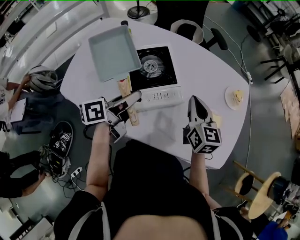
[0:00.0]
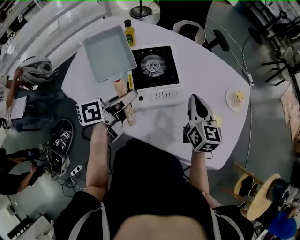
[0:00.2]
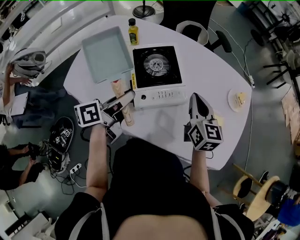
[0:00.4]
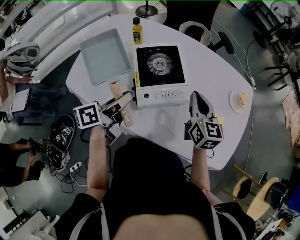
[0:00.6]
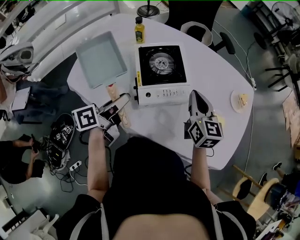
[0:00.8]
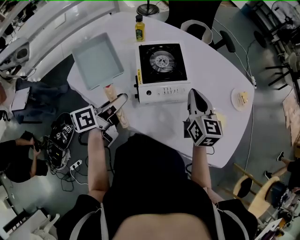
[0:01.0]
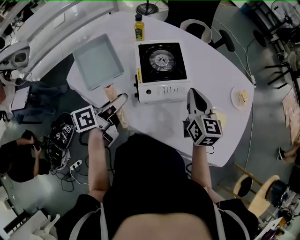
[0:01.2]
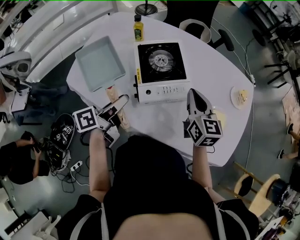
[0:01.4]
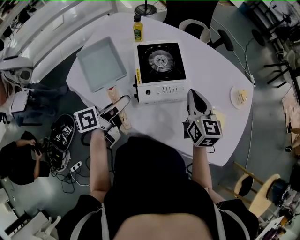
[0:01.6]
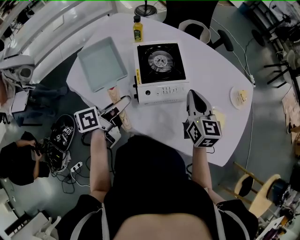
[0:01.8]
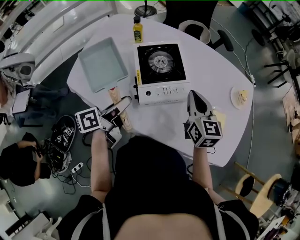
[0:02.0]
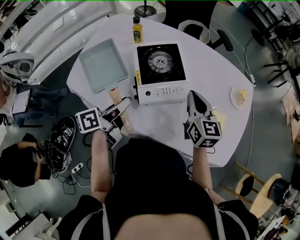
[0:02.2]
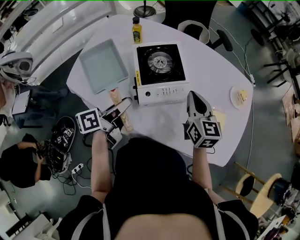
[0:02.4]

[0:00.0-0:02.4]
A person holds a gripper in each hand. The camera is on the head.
0:00.0 to 0:01.2: The right gripper ends up about 5 cm from where it was, while the left gripper travels to the left and backward by about 10 cm.
0:01.2 to 0:02.4: The grippers move only a little.

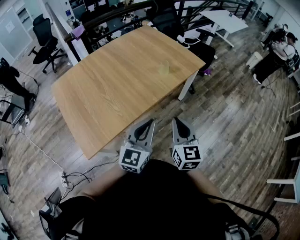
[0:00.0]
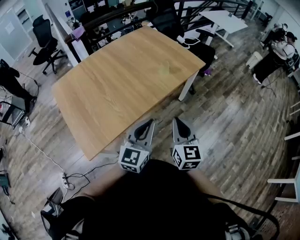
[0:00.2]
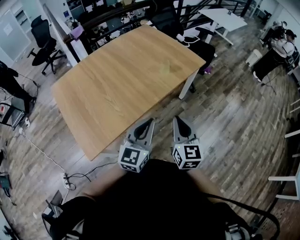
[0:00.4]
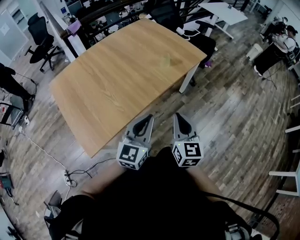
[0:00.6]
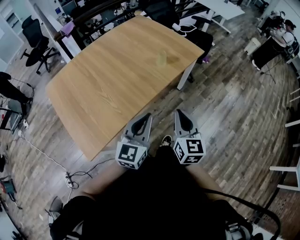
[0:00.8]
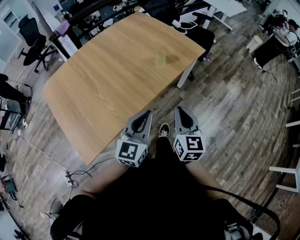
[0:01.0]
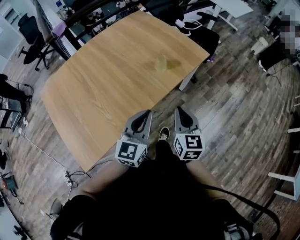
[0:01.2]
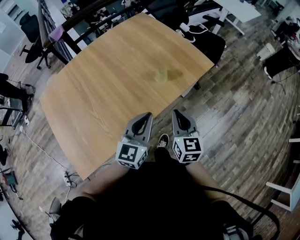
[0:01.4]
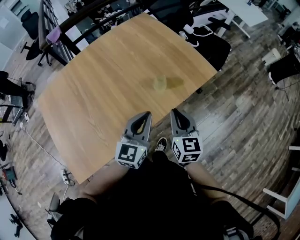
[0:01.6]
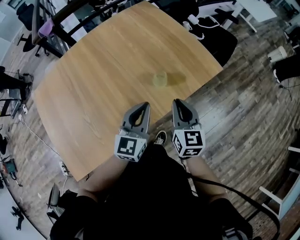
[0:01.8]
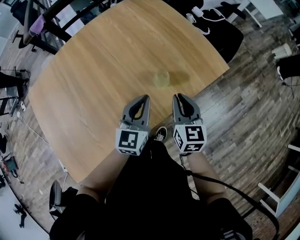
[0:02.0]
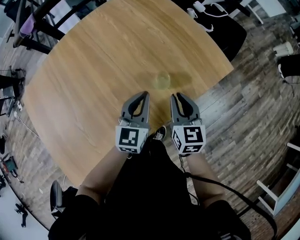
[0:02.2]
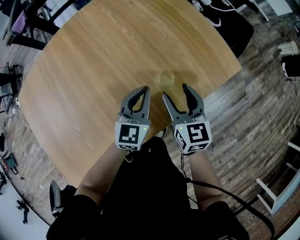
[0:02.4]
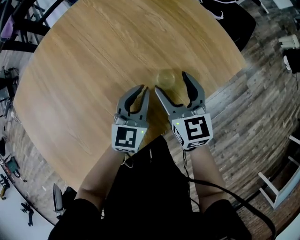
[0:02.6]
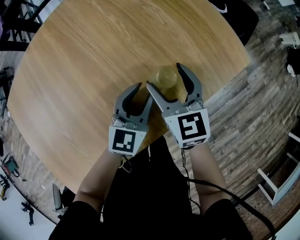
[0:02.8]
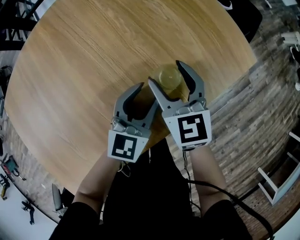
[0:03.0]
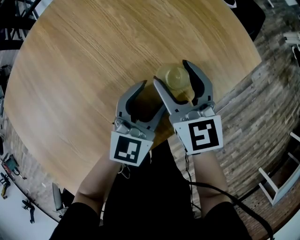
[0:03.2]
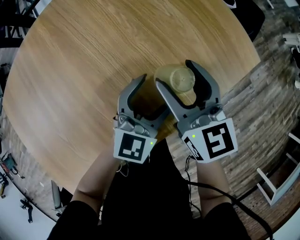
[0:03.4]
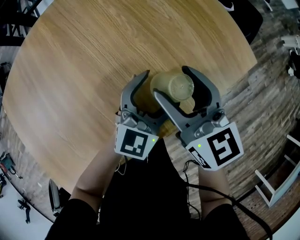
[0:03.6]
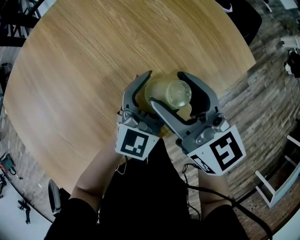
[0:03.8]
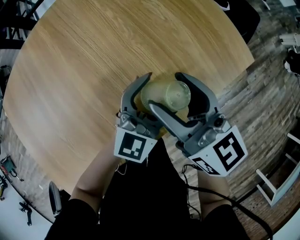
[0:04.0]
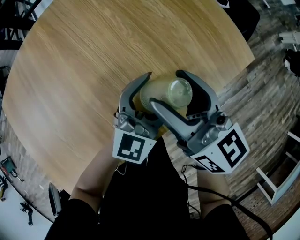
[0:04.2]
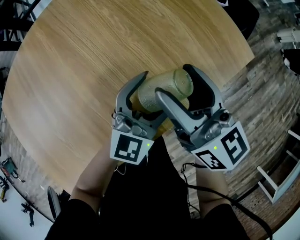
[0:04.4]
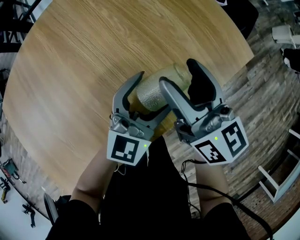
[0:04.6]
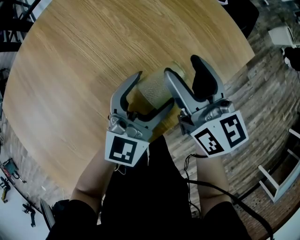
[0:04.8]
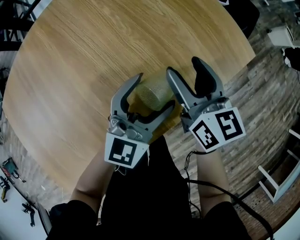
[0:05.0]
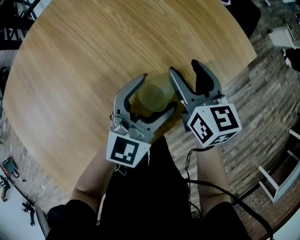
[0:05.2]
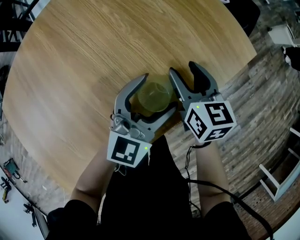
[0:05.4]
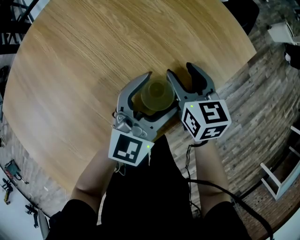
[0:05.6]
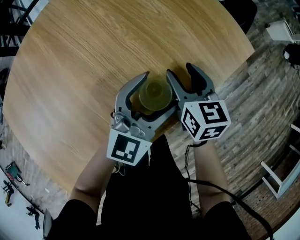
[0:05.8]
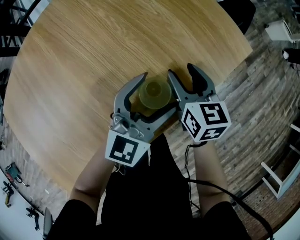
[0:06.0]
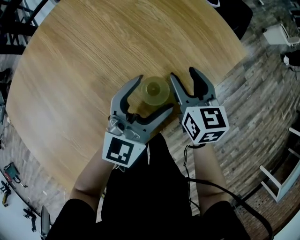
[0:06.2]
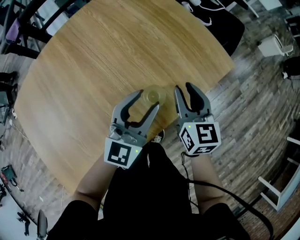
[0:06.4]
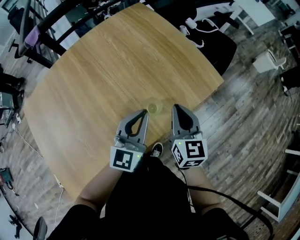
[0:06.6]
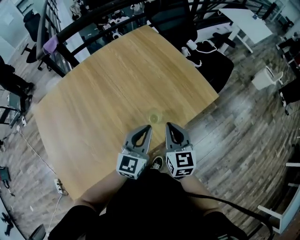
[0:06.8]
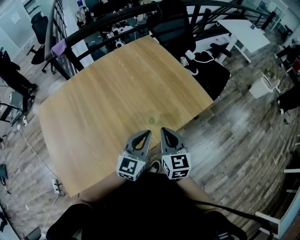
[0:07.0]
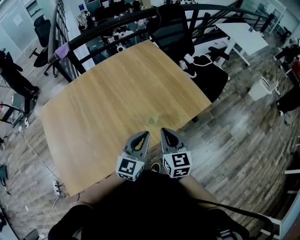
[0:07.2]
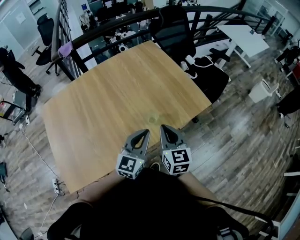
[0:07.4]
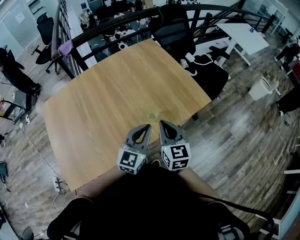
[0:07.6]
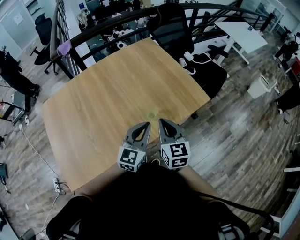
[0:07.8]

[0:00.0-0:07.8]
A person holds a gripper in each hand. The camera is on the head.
0:00.0 to 0:01.6: The grippers both shift forward by roughly 35 cm.
0:01.6 to 0:03.2: The right gripper is displaced forward and downward by about 30 cm, and opens up, while the left gripper heads downward and forward, covering approximately 30 cm, and opens its fingers.
0:03.2 to 0:04.6: The right gripper heads upward, covering approximately 5 cm, and rotates approximately 30 degrees.
0:04.6 to 0:06.2: The right gripper goes about 10 cm downward, and rotates some 30 degrees.
0:06.2 to 0:07.8: Both grippers travel together upward and backward, approximately 25 cm. The right gripper closes, while the left gripper closes its fingers.

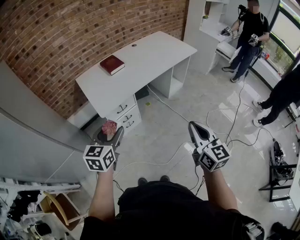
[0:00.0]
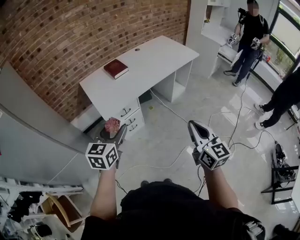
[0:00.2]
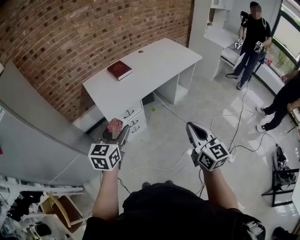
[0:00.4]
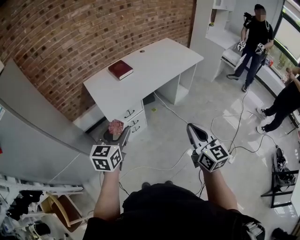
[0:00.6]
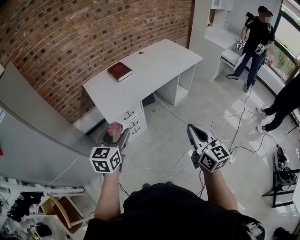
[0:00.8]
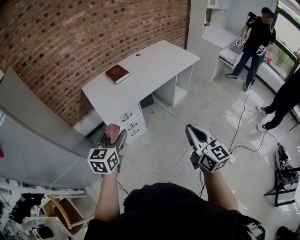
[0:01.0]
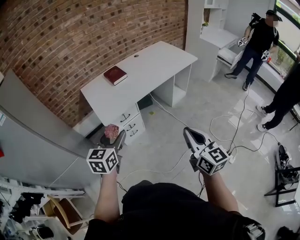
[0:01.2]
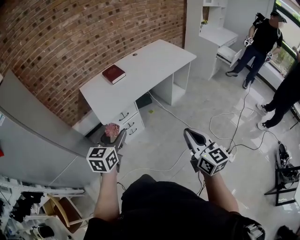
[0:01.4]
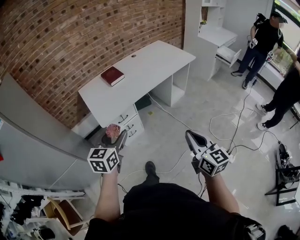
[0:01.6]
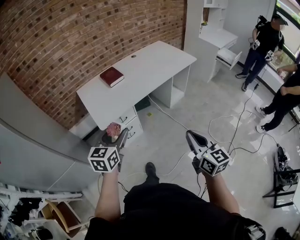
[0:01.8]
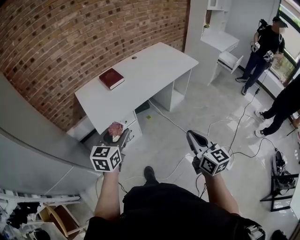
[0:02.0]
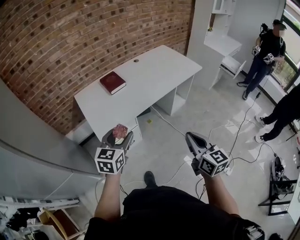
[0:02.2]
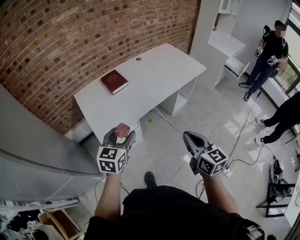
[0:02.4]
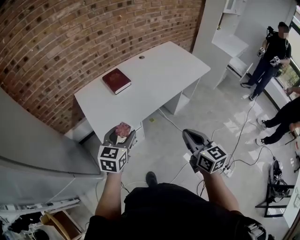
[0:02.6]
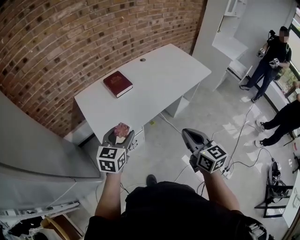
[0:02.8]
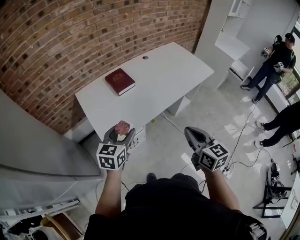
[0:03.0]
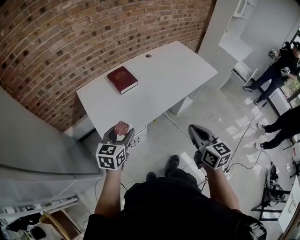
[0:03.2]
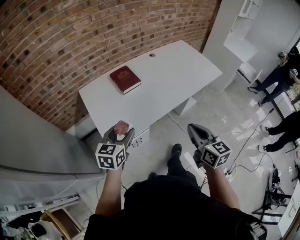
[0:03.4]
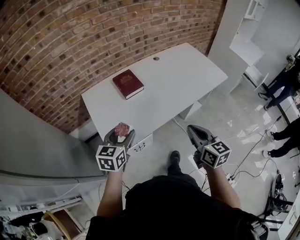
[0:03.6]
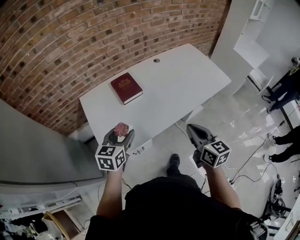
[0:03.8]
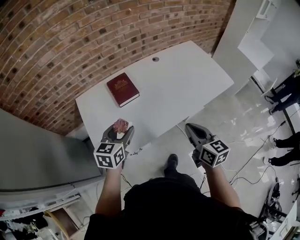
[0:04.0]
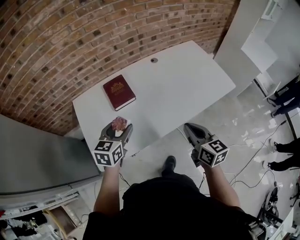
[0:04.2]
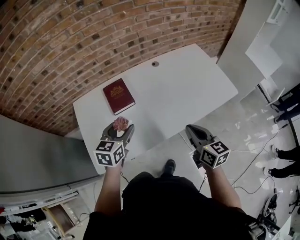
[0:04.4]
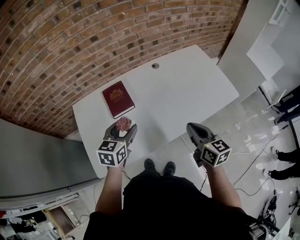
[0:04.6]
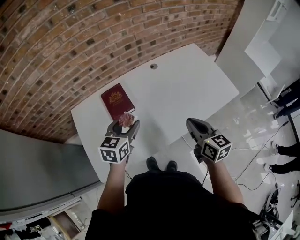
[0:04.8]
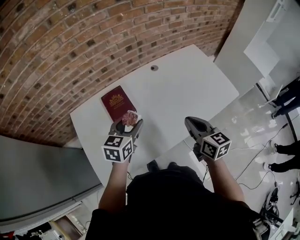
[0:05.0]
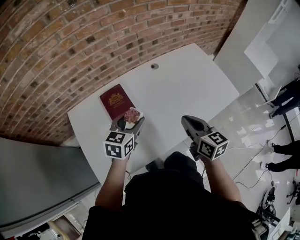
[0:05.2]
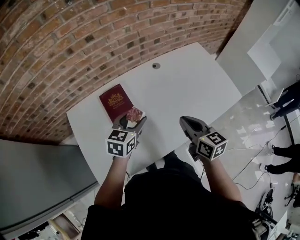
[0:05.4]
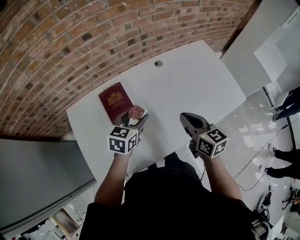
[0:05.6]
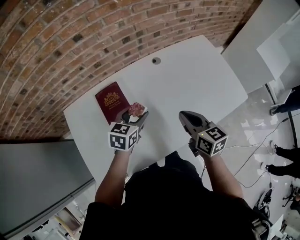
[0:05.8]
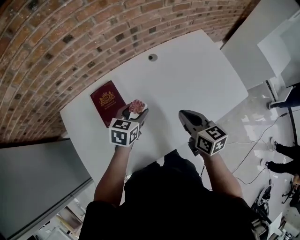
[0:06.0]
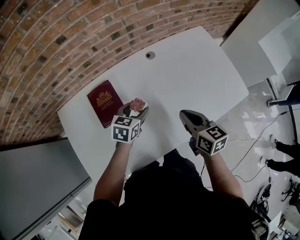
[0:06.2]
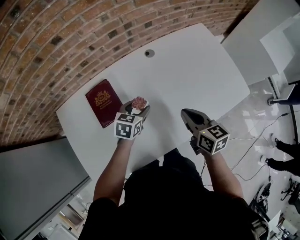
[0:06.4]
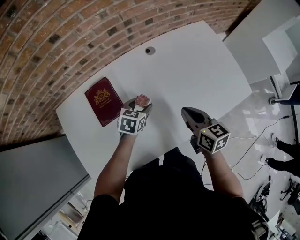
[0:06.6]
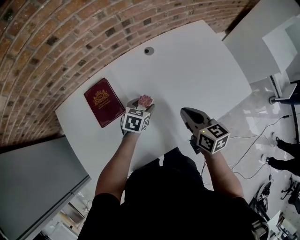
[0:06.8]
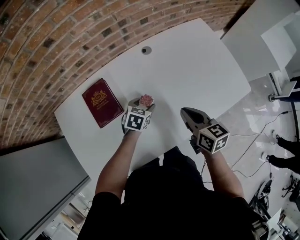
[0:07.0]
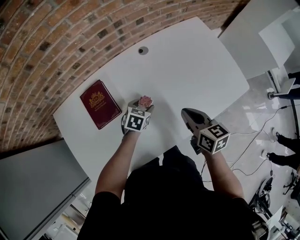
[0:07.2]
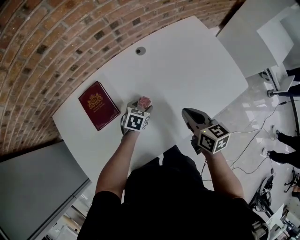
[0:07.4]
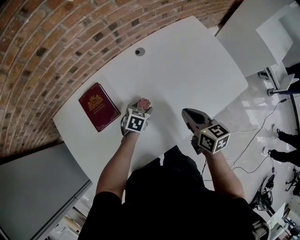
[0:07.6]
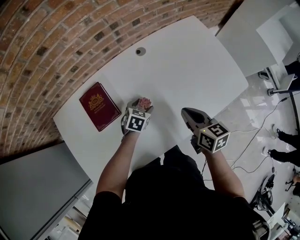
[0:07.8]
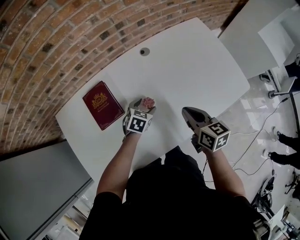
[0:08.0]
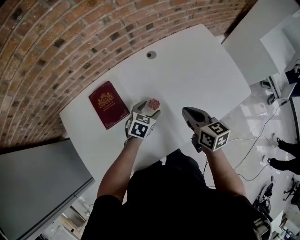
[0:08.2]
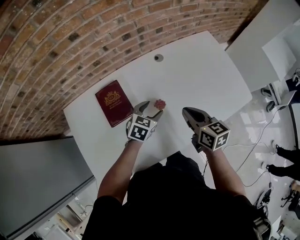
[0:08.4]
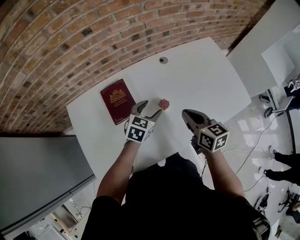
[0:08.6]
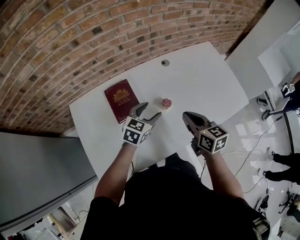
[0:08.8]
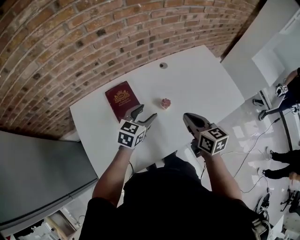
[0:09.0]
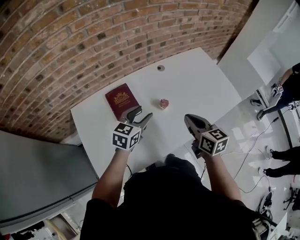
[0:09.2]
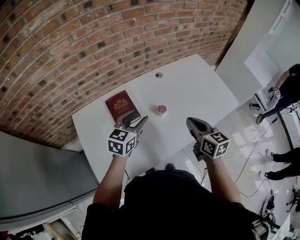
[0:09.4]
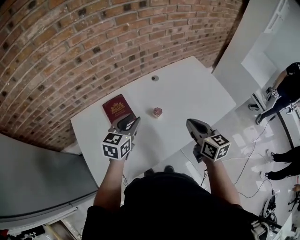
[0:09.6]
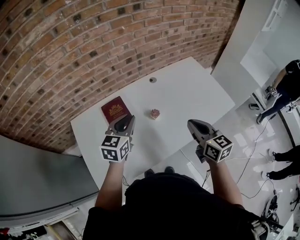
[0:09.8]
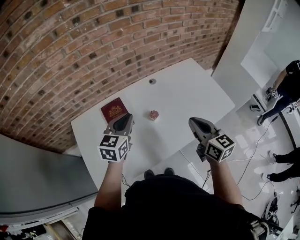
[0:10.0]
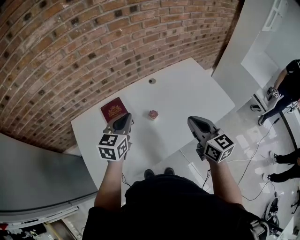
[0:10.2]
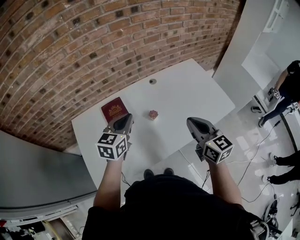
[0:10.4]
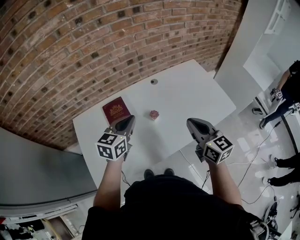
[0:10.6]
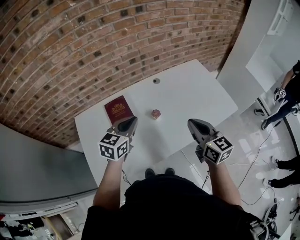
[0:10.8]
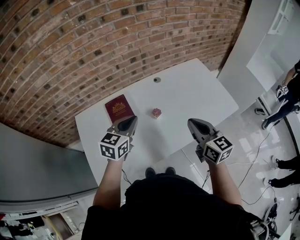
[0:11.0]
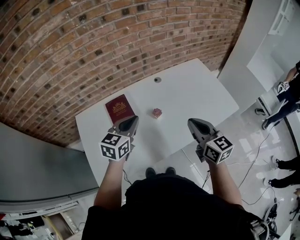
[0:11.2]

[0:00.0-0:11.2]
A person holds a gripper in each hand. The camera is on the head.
0:00.0 to 0:01.6: The grippers make only small movements.
0:01.6 to 0:03.2: The grippers both shift forward by some 30 cm.
0:03.2 to 0:04.8: The left gripper travels forward and to the right by approximately 30 cm, while the right gripper goes some 30 cm forward.
0:04.8 to 0:06.4: The left gripper goes approximately 25 cm downward, forward and to the right. The right gripper moves forward and downward, some 15 cm.
0:06.4 to 0:08.0: The left gripper heads downward, covering about 10 cm.
0:08.0 to 0:09.6: The left gripper travels upward and to the left by roughly 30 cm, tilts its fingers some 30 degrees upward, and closes its fingers. The right gripper moves upward and backward, approximately 15 cm.
0:09.6 to 0:11.2: The left gripper closes.

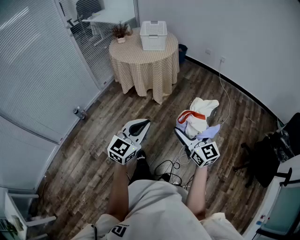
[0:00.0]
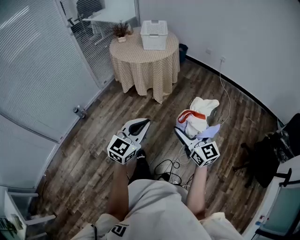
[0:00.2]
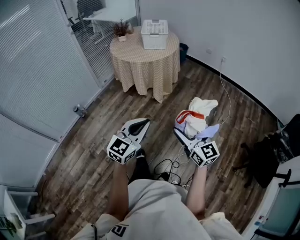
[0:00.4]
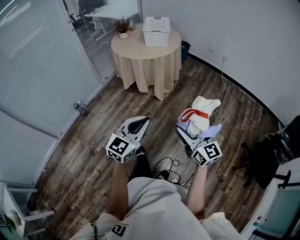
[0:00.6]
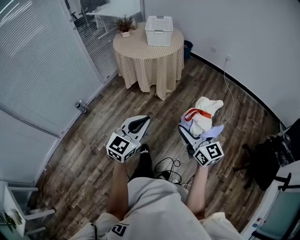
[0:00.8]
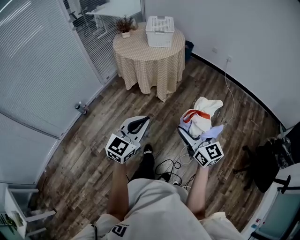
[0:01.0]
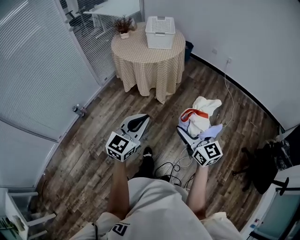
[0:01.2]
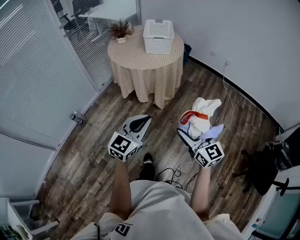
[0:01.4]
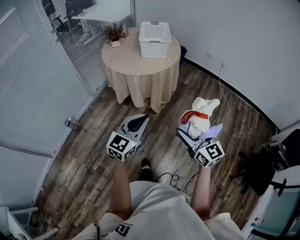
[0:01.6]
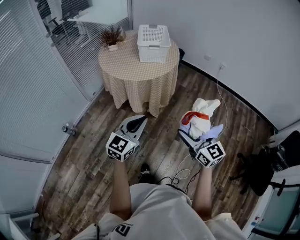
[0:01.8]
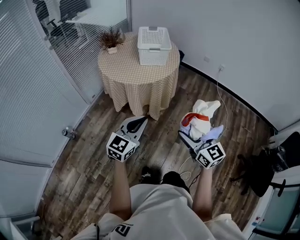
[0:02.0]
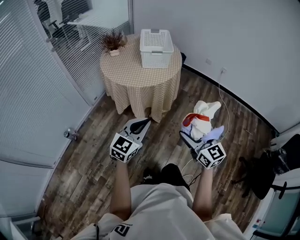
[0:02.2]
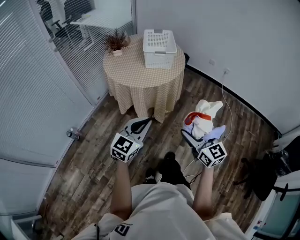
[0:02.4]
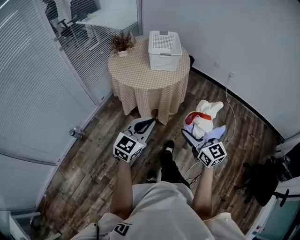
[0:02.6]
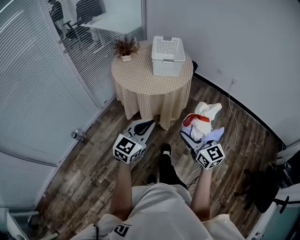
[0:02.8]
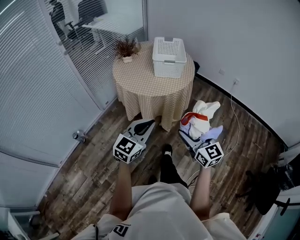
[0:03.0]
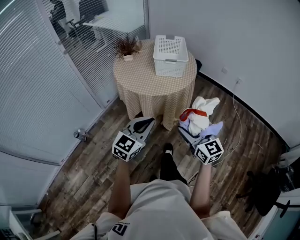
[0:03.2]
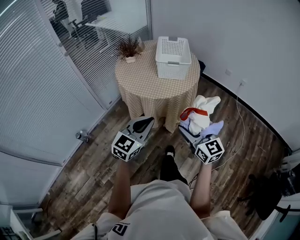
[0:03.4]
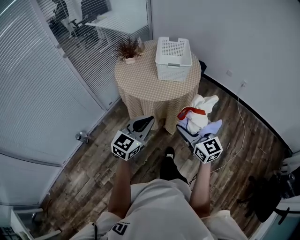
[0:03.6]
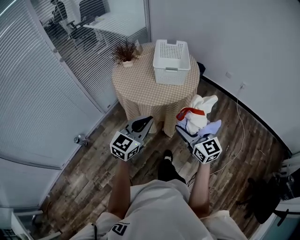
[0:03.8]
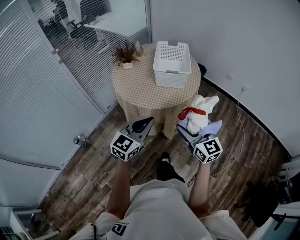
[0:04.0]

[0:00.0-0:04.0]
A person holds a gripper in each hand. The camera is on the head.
0:00.0 to 0:01.4: The two grippers go roughly 15 cm forward.
0:01.4 to 0:02.6: The two grippers go approximately 15 cm forward.
0:02.6 to 0:04.0: The two grippers go approximately 20 cm forward.
